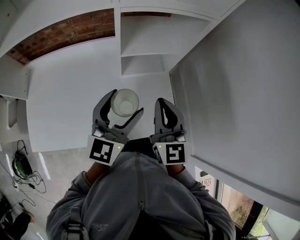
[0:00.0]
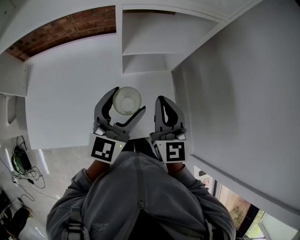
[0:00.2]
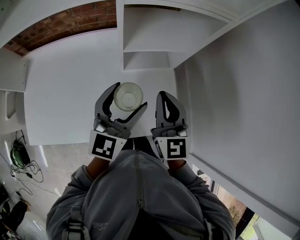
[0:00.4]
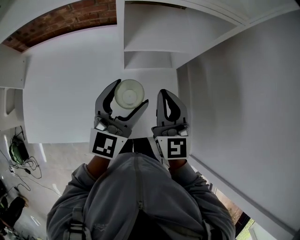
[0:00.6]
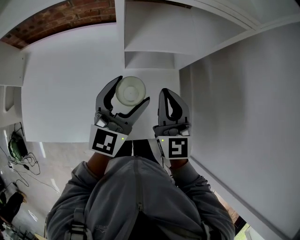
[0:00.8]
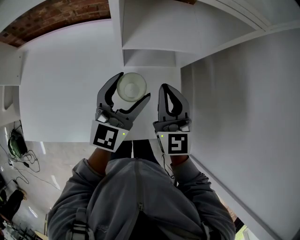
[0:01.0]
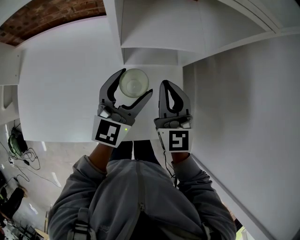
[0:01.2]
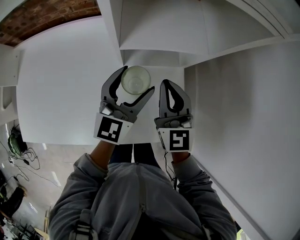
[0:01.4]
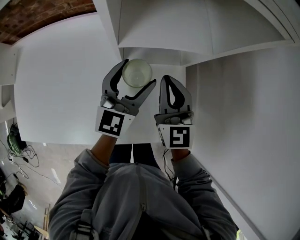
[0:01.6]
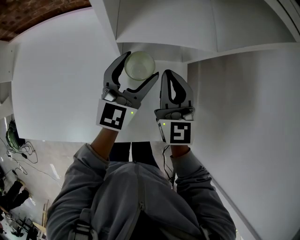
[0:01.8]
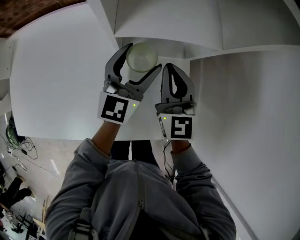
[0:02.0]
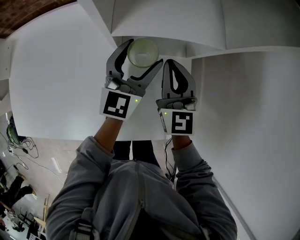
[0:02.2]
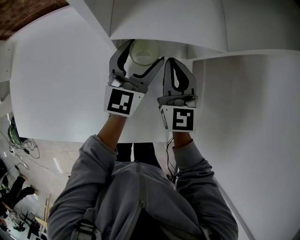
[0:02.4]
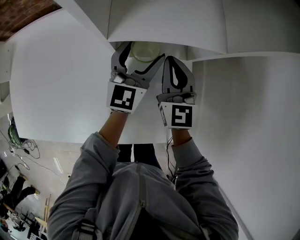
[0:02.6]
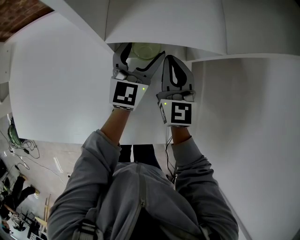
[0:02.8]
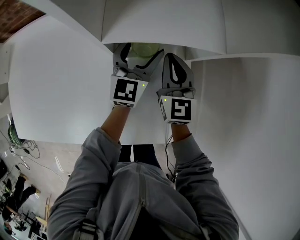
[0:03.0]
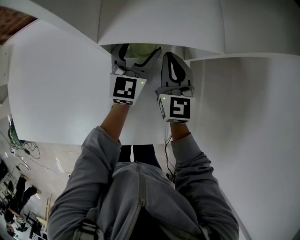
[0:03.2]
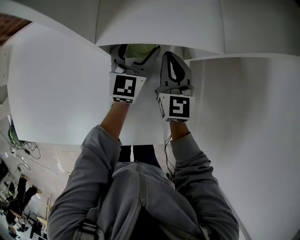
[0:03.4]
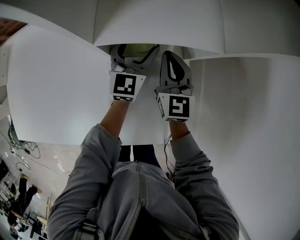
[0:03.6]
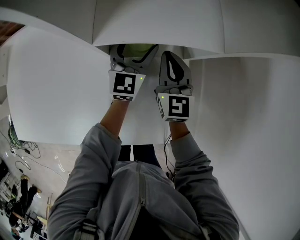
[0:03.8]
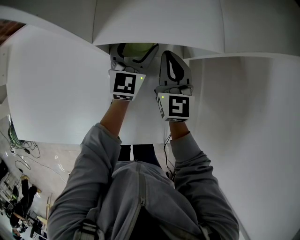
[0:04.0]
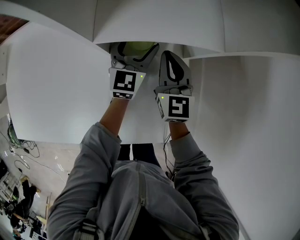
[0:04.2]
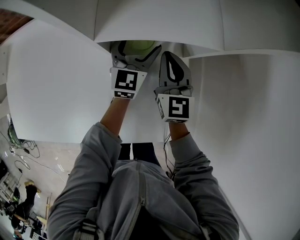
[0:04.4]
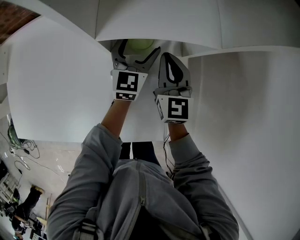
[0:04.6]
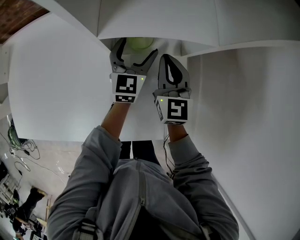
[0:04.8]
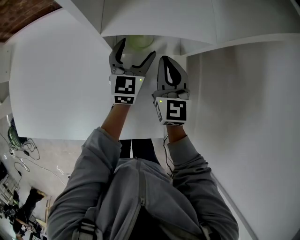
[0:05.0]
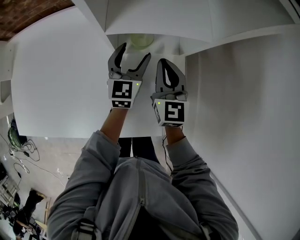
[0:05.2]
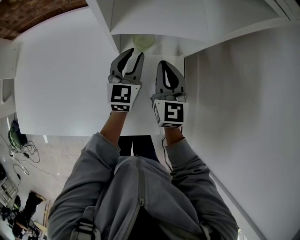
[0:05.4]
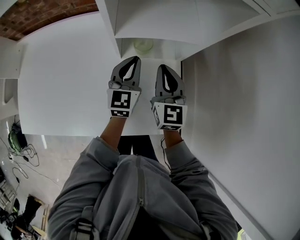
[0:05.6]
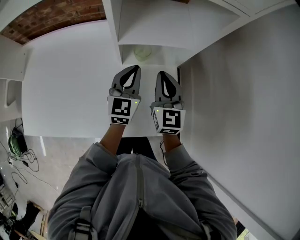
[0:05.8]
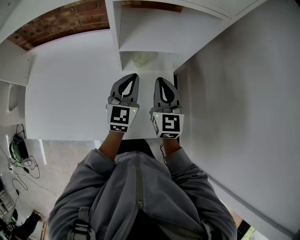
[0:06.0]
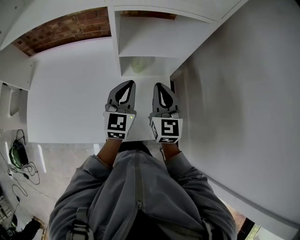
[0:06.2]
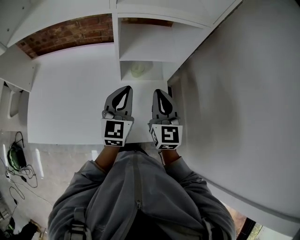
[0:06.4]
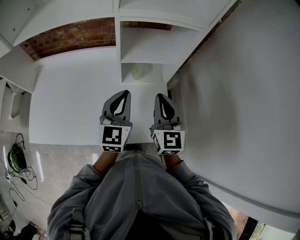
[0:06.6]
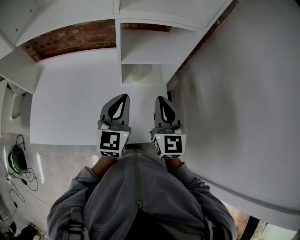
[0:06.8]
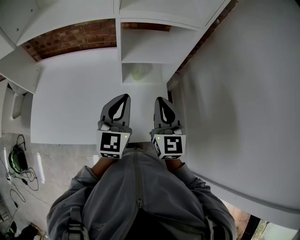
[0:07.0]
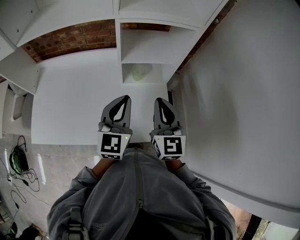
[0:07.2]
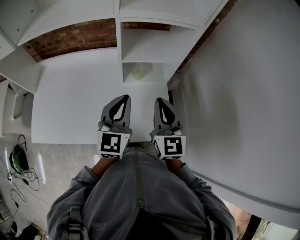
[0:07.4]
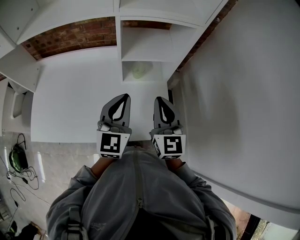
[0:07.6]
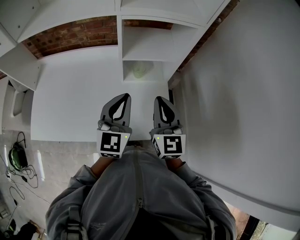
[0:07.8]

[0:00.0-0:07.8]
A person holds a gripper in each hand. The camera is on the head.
0.0 to 1.6 s: Both grippers travel together forward and downward, roughly 20 cm.
1.6 to 3.2 s: The grippers both shift downward and forward by some 10 cm.
3.2 to 4.6 s: The grippers move only a little.
4.6 to 6.2 s: The two grippers go approximately 20 cm backward and upward. The left gripper closes up.
6.2 to 7.8 s: Both grippers move backward and upward, some 10 cm.

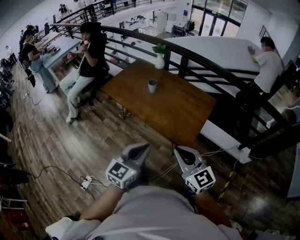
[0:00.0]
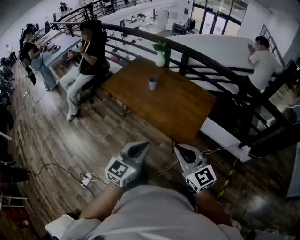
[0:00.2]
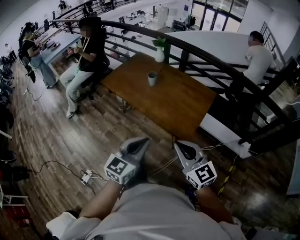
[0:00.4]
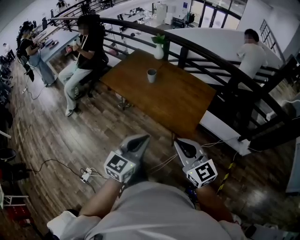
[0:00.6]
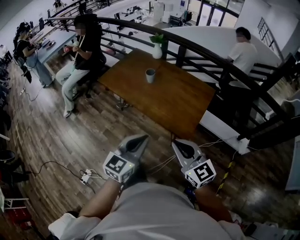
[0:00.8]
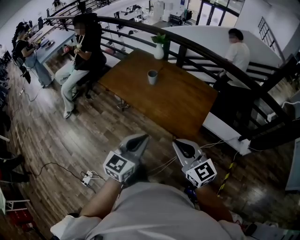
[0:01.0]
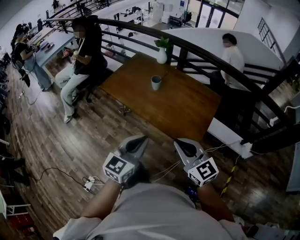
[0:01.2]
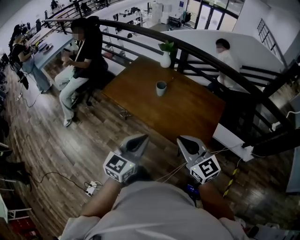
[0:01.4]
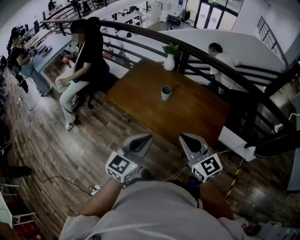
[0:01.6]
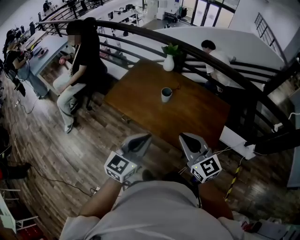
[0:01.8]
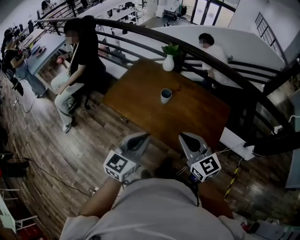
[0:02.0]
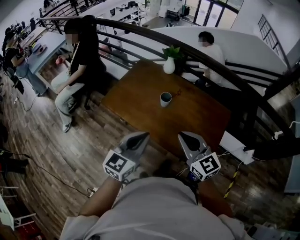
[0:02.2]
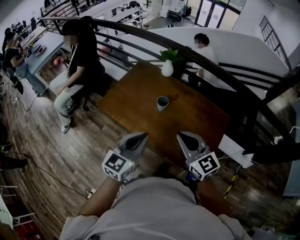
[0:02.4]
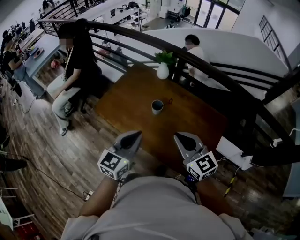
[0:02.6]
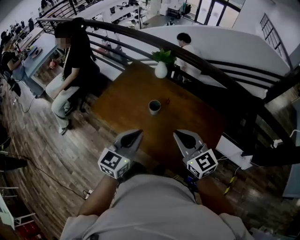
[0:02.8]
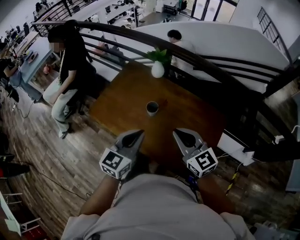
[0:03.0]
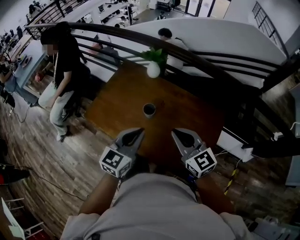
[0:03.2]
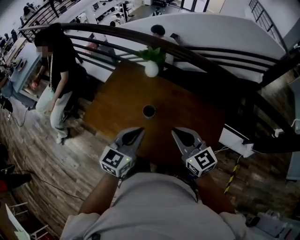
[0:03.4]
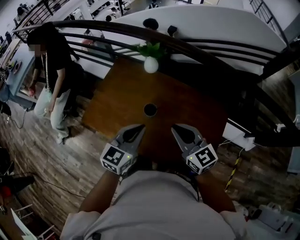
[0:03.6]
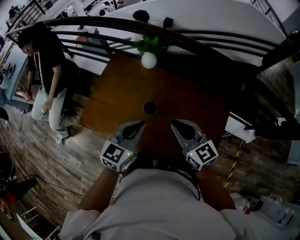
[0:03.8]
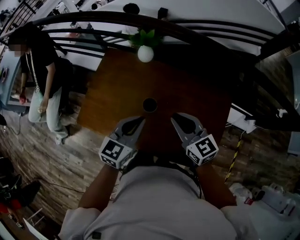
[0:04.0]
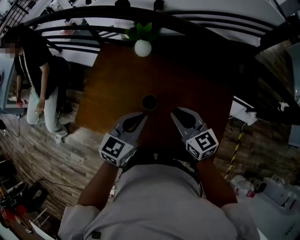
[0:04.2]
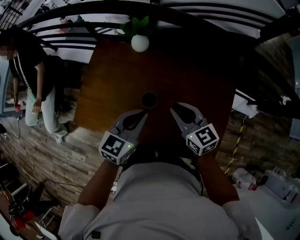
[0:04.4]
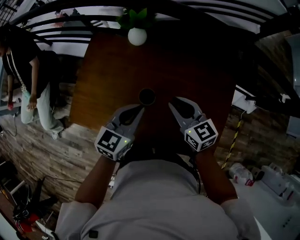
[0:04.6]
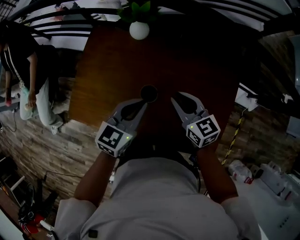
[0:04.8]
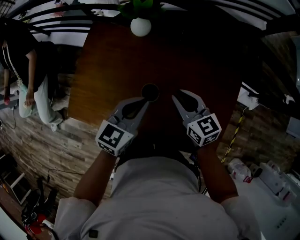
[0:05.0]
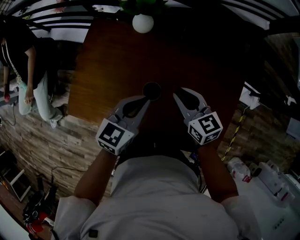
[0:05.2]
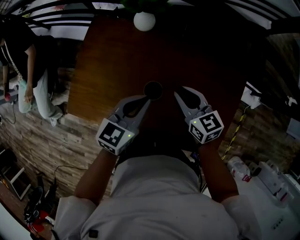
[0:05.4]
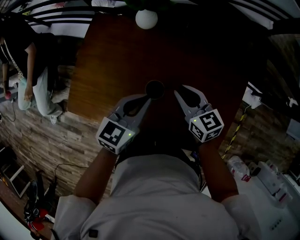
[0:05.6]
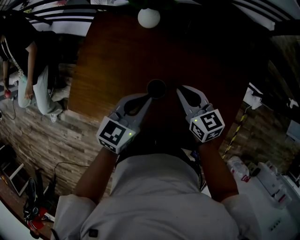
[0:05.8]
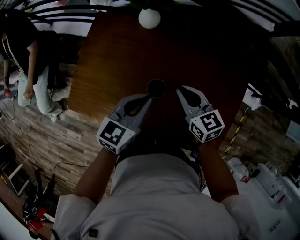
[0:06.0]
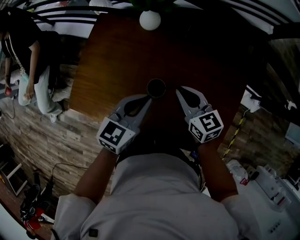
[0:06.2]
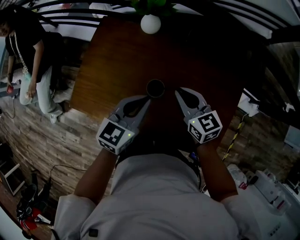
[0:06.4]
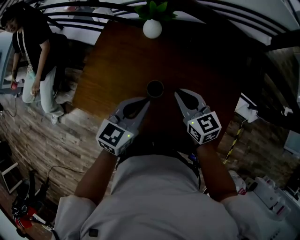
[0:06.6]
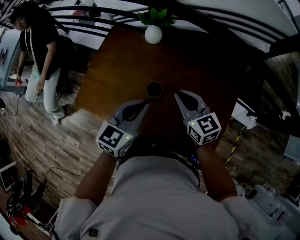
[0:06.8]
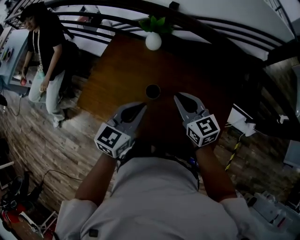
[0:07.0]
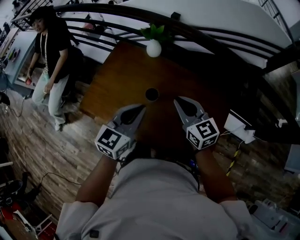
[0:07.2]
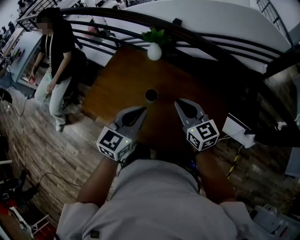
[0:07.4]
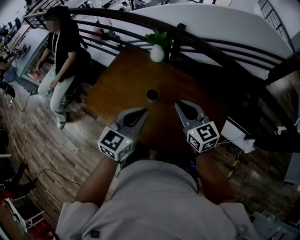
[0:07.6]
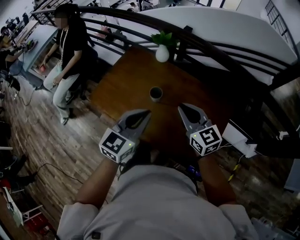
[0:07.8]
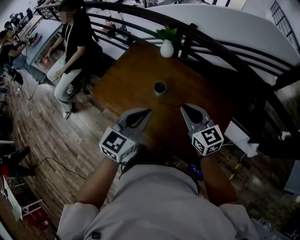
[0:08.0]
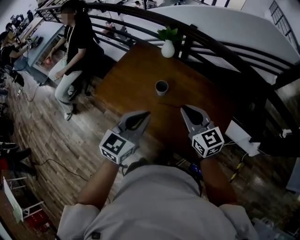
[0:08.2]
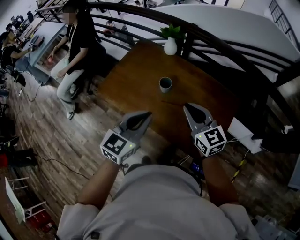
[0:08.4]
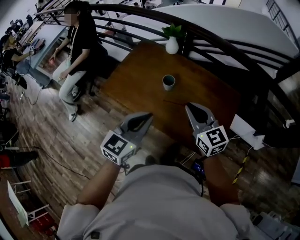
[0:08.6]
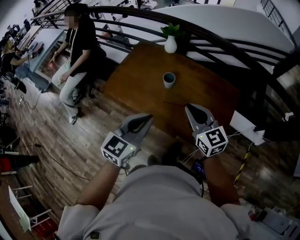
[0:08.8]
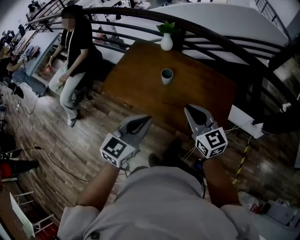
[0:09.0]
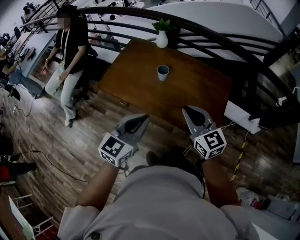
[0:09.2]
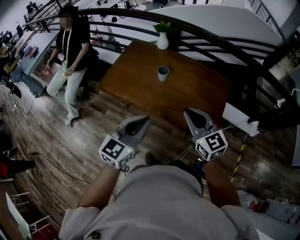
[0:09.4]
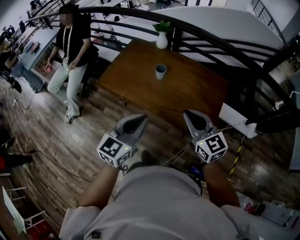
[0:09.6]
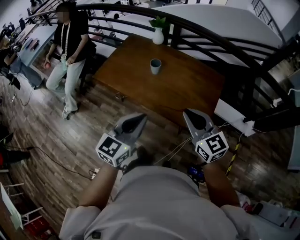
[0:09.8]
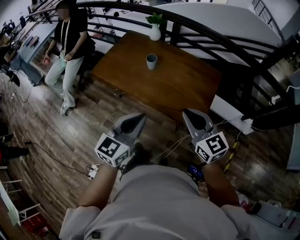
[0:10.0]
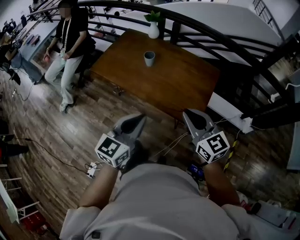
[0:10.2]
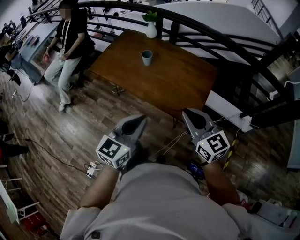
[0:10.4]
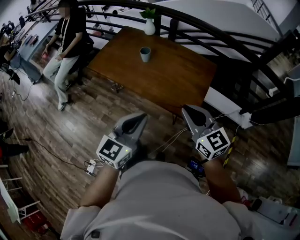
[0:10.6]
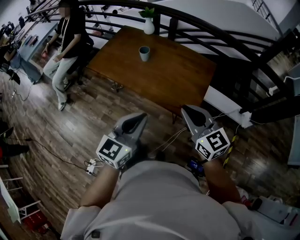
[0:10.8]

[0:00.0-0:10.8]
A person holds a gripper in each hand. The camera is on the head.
0.0 to 1.6 s: Both grippers move forward and to the left, roughly 25 cm.
1.6 to 3.0 s: Both grippers move forward, roughly 25 cm.
3.0 to 4.6 s: The two grippers go about 30 cm forward and downward. The right gripper changes its angle by approximately 30 degrees; the left gripper rotates approximately 20 degrees.
4.6 to 6.2 s: The right gripper shifts approximately 5 cm downward.
6.2 to 7.8 s: The right gripper goes approximately 30 cm upward, backward and to the right, and rotates about 20 degrees, while the left gripper heads backward, upward and to the right, covering about 30 cm, and rotates about 20 degrees.
7.8 to 9.2 s: The left gripper travels backward and to the left by roughly 25 cm; the right gripper shifts some 25 cm backward.
9.2 to 10.8 s: The grippers both shift to the right and backward by roughly 25 cm.

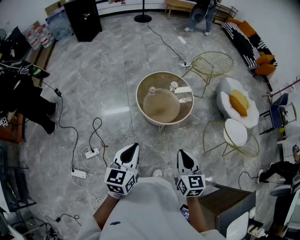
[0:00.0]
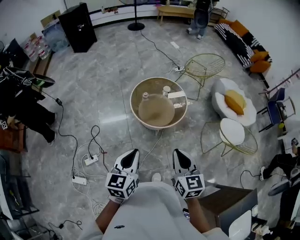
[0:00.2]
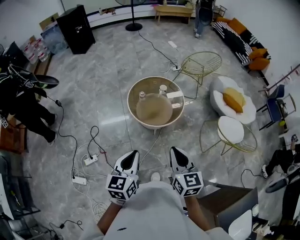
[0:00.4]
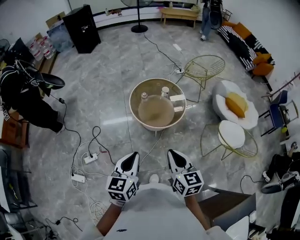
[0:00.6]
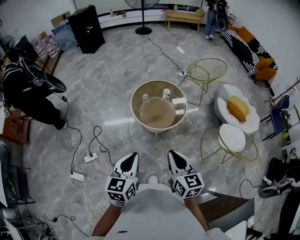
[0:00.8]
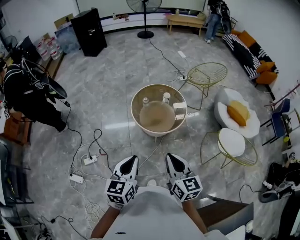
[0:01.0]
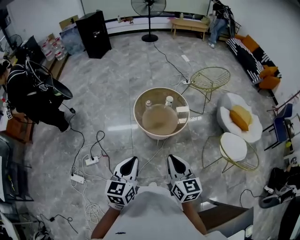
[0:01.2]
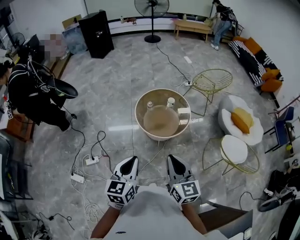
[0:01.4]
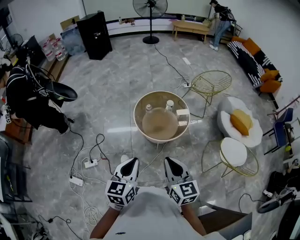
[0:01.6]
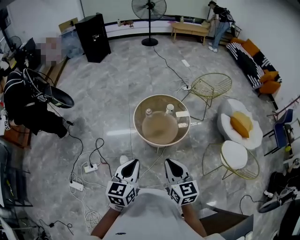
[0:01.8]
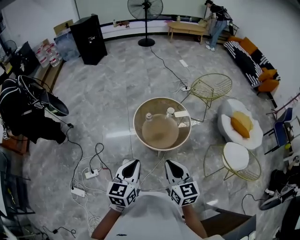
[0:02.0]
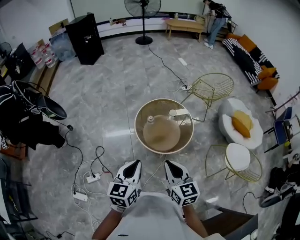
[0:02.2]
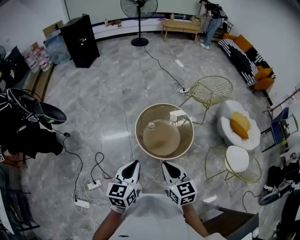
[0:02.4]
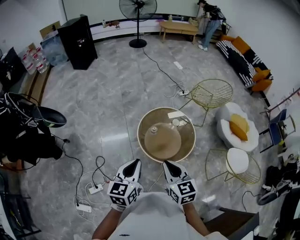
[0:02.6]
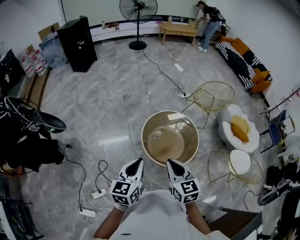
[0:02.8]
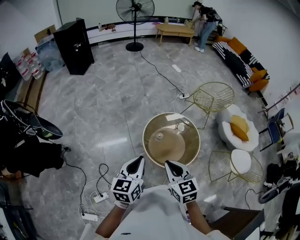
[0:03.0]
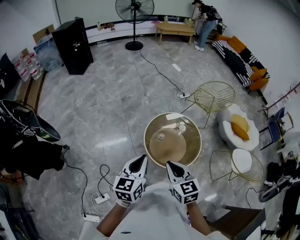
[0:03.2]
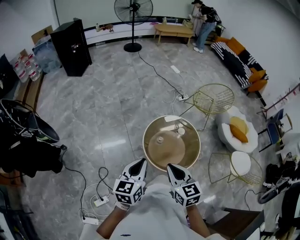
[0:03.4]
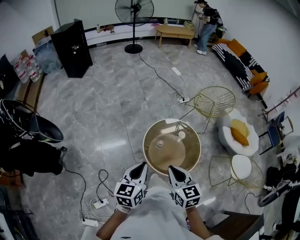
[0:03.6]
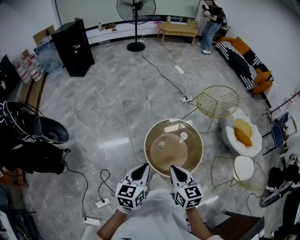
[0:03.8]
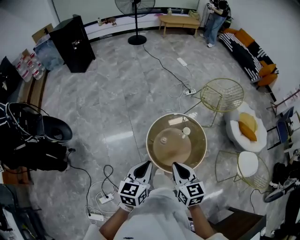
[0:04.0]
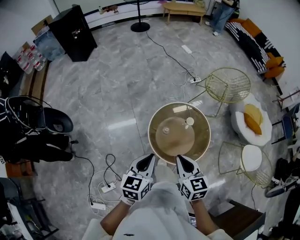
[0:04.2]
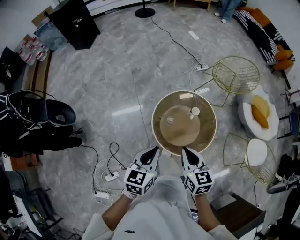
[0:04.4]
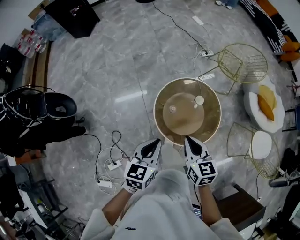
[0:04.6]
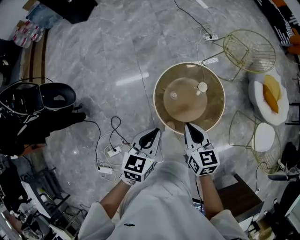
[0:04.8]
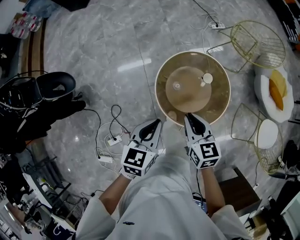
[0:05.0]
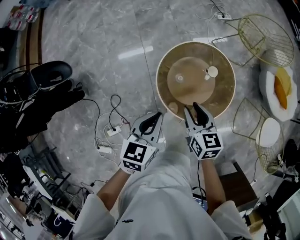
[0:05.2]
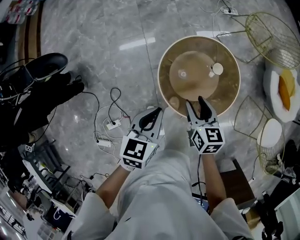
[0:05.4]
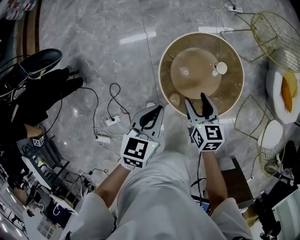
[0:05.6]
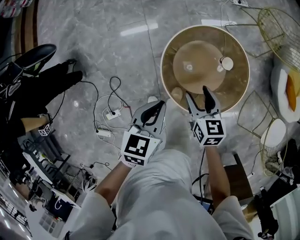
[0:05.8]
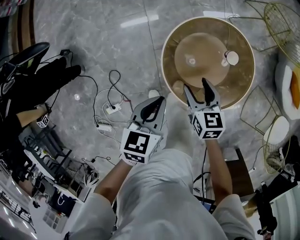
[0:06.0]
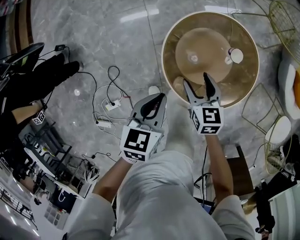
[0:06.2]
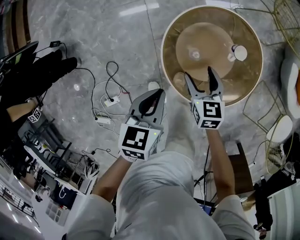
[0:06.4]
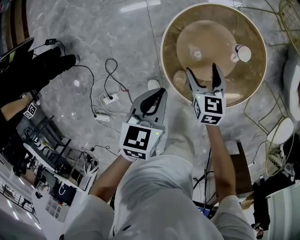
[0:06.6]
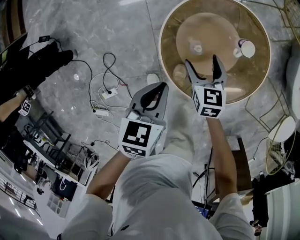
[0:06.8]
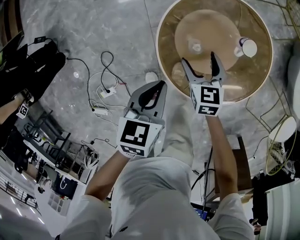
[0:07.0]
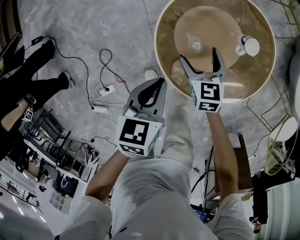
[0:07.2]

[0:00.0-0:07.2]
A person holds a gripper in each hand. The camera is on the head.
0.0 to 1.4 s: The right gripper is displaced to the right and upward by about 10 cm. Meanwhile the left gripper goes approximately 15 cm to the right and backward.
1.4 to 2.8 s: Both grippers move forward and to the left, some 35 cm.
2.8 to 4.4 s: Both grippers move forward and downward, roughly 15 cm.
4.4 to 5.8 s: The grippers both shift downward and forward by about 20 cm. The right gripper opens.
5.8 to 7.2 s: Both grippers travel together downward, approximately 20 cm. The right gripper opens its fingers.
